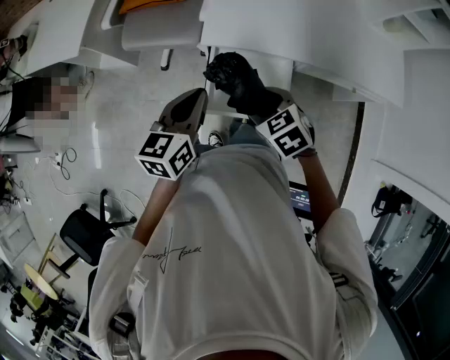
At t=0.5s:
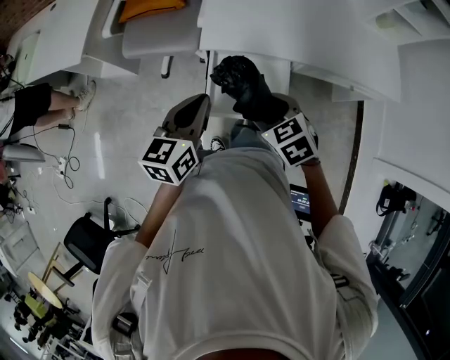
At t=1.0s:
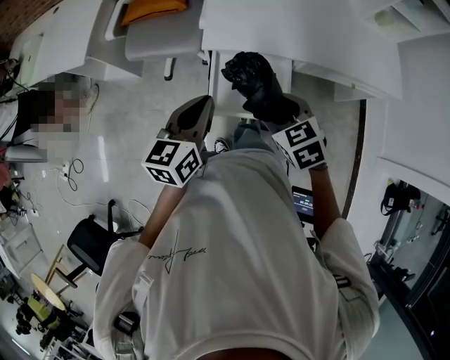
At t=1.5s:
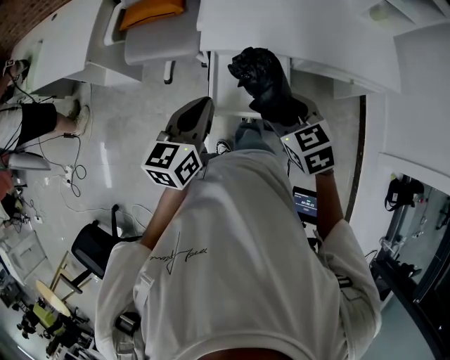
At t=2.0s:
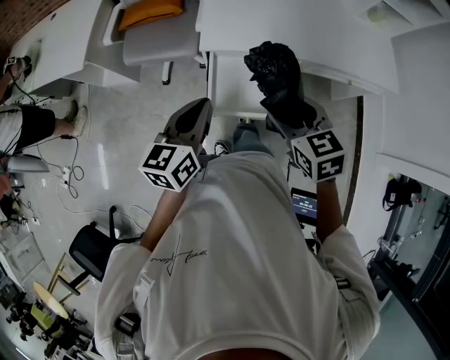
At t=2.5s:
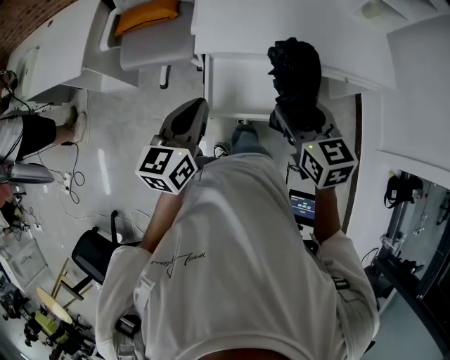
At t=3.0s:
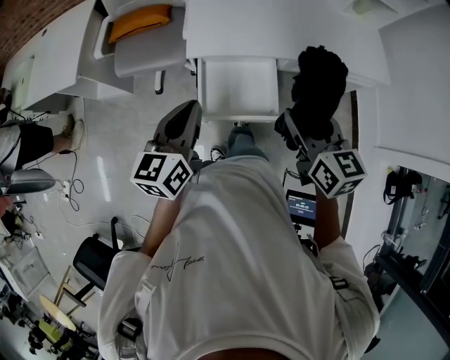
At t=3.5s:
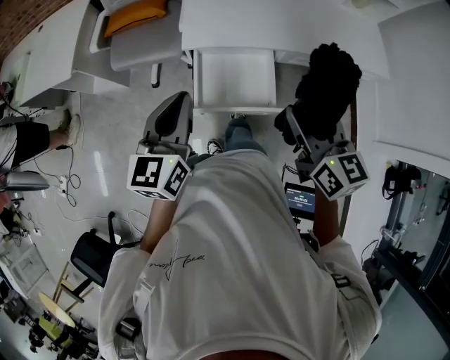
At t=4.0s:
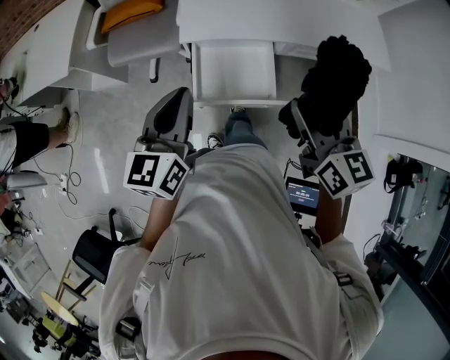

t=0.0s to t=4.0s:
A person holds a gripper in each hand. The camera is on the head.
t=0.0s to t=2.0s: The left gripper moves some 5 cm, while the right gripper goes approximately 10 cm upward, and turns by approximately 20 degrees.
t=2.0s to t=4.0s: The right gripper is displaced to the right and upward by approximately 10 cm, and swivels some 30 degrees.

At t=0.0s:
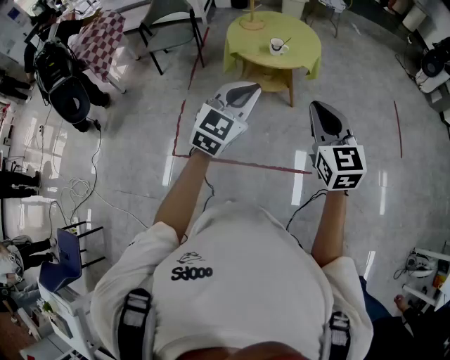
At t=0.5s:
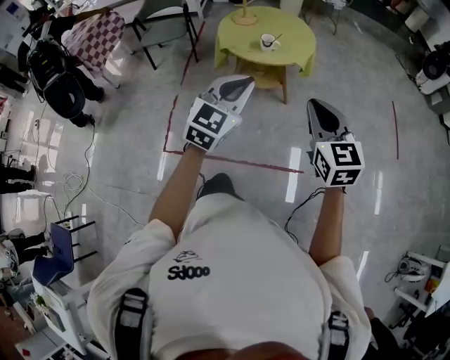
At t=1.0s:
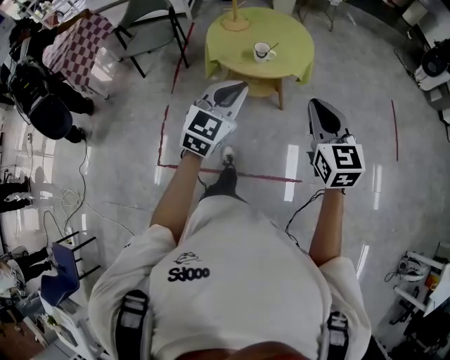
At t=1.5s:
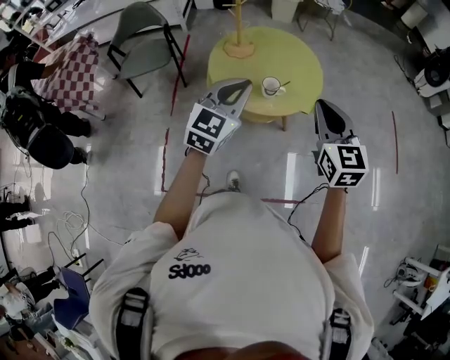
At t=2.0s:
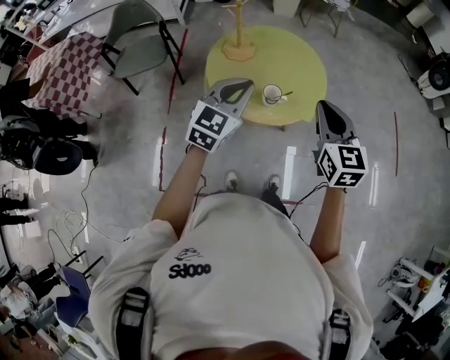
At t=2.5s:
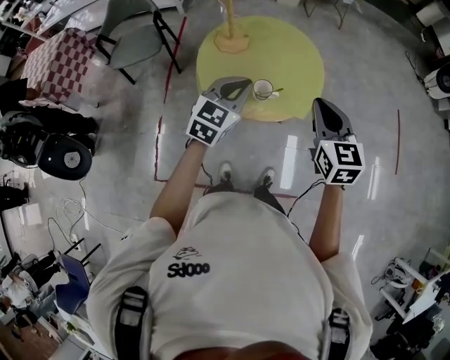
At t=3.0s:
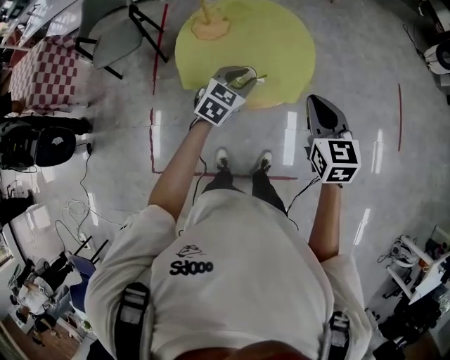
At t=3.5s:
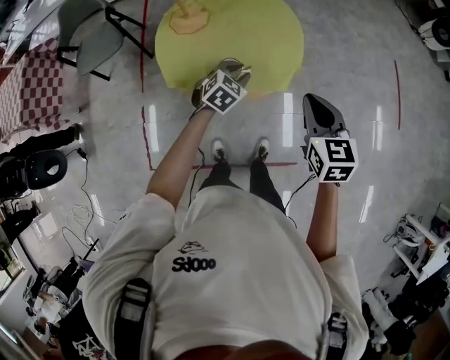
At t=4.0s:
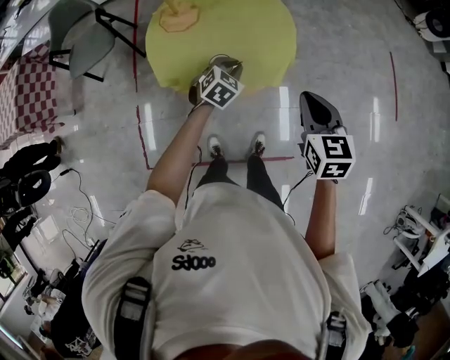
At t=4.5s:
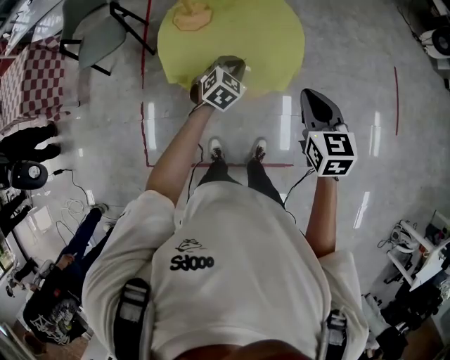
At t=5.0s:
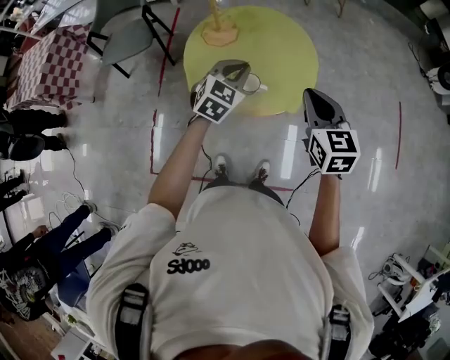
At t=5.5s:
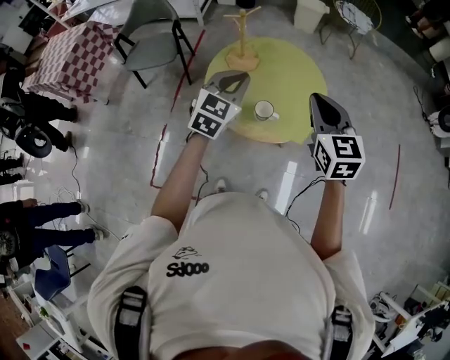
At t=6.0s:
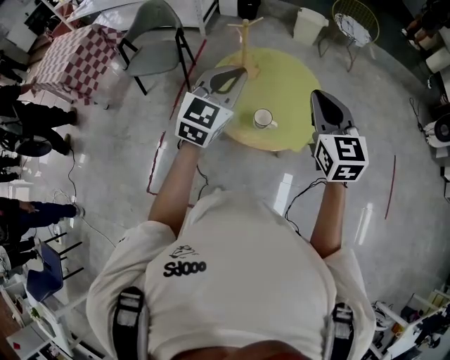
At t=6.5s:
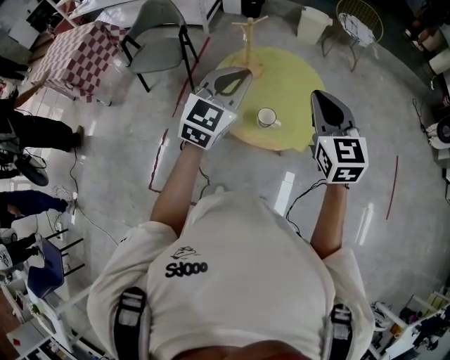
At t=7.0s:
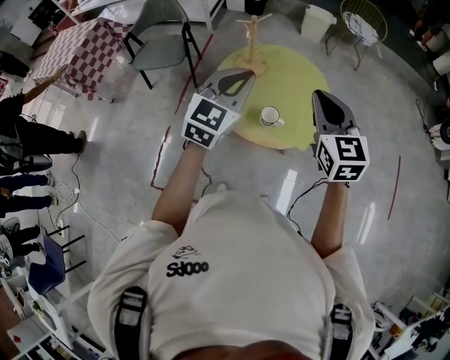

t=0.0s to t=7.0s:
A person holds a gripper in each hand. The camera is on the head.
t=0.0s to t=2.0s: The two grippers travel together, forward, some 40 cm.
t=2.0s to t=3.5s: The left gripper is displaced downward, to the right and forward by roughly 35 cm, angles its fingers downward, by roughly 30 degrees, and opens its fingers. The right gripper moves to the right, downward and forward, roughly 20 cm.
t=3.5s to t=5.0s: The left gripper is displaced upward and to the left by approximately 15 cm, and turns by roughly 20 degrees. The right gripper is displaced to the left by some 5 cm.
t=5.0s to t=7.0s: The two grippers go about 15 cm upward and to the left. The left gripper swivels roughly 20 degrees.

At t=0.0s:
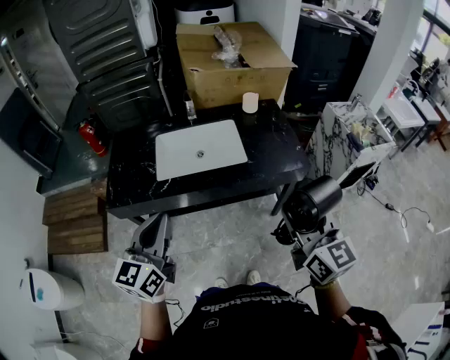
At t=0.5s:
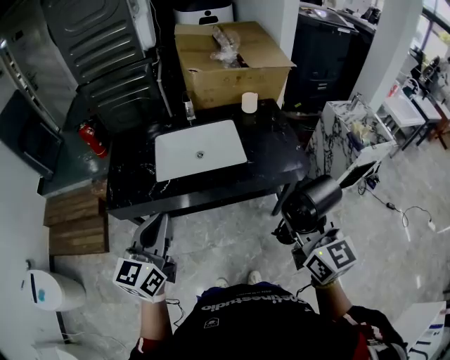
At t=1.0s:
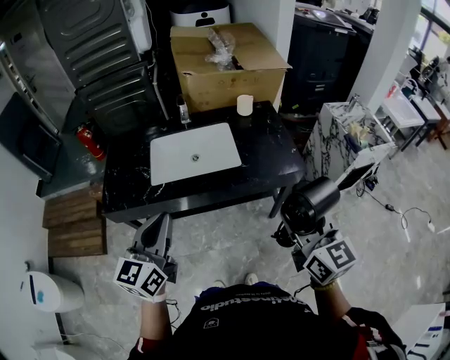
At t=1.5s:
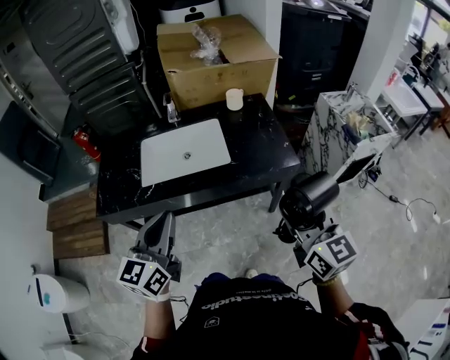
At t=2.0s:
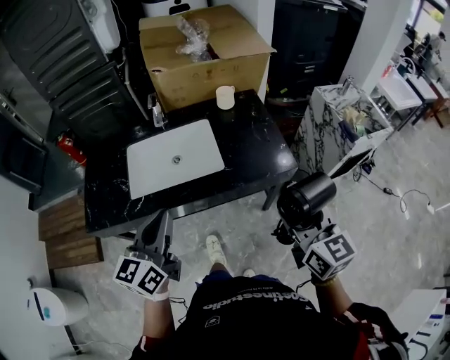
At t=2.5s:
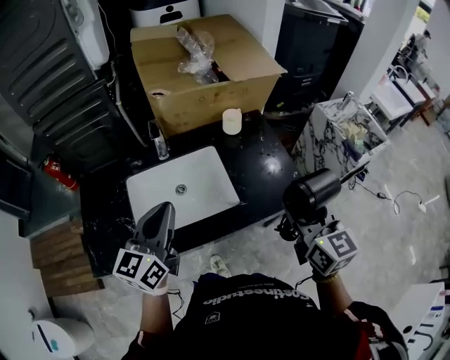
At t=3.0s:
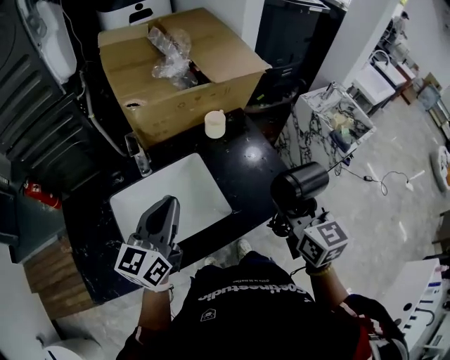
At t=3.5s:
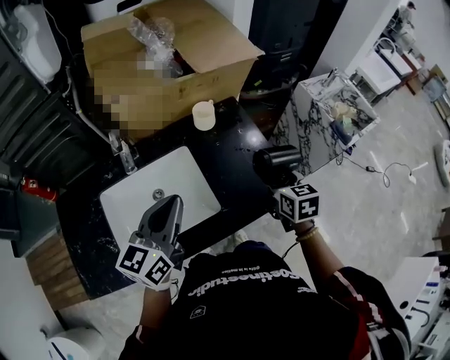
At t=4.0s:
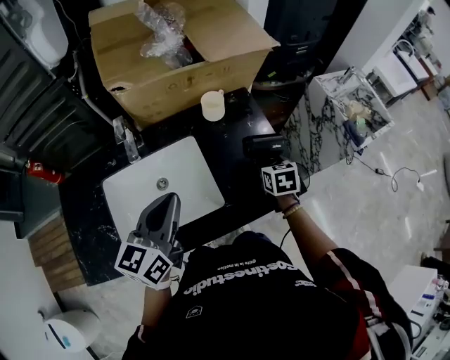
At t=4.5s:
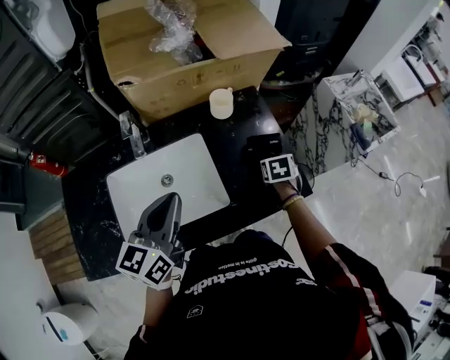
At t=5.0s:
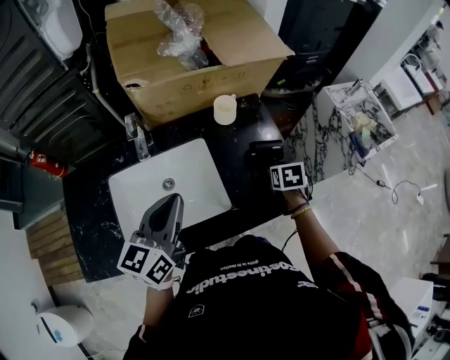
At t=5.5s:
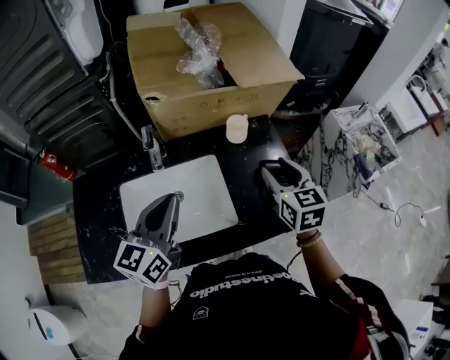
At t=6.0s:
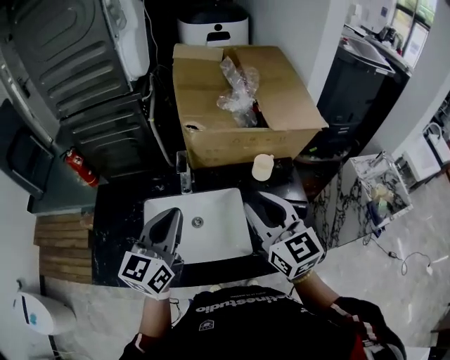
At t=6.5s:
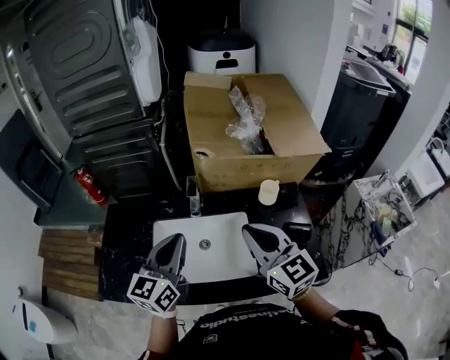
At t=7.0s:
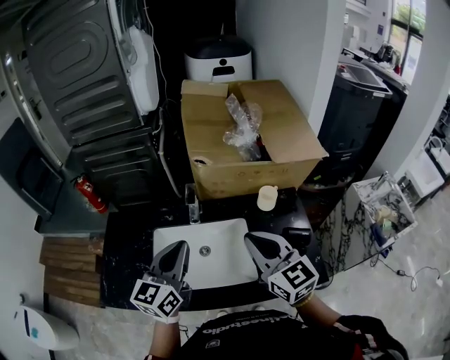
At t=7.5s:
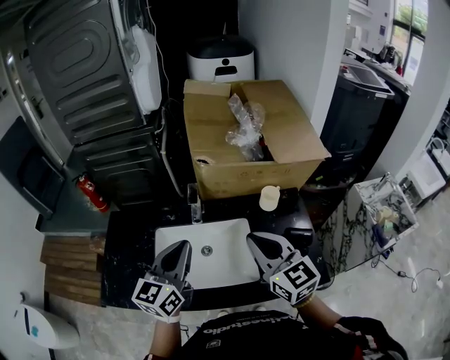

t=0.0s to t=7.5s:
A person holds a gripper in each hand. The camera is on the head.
t=0.0s to t=2.0s: The right gripper heads forward, to the right and downward, covering roughly 15 cm. The left gripper is displaced forward and to the right by approximately 15 cm.
t=2.0s to t=4.0s: The right gripper moves forward and downward, roughly 40 cm, and angles its fingers downward, by roughly 40 degrees. Meanwhile the left gripper shifts approximately 25 cm forward.
t=4.0s to t=5.5s: The right gripper goes about 20 cm upward and to the left, and turns by roughly 30 degrees. Meanwhile the left gripper is displaced to the left by about 5 cm.
t=5.5s to t=7.5s: The left gripper goes approximately 5 cm to the left. The right gripper travels to the left and upward by approximately 20 cm, swivels roughly 30 degrees, and closes.

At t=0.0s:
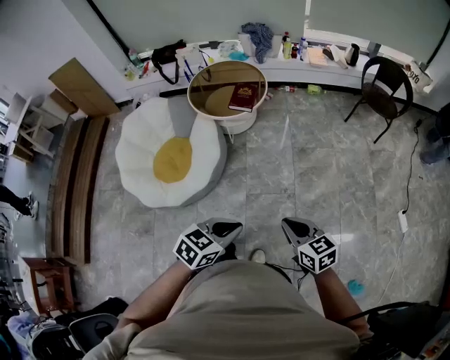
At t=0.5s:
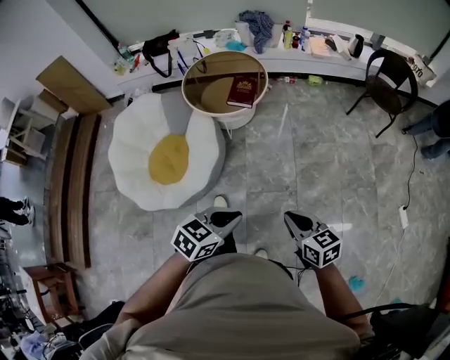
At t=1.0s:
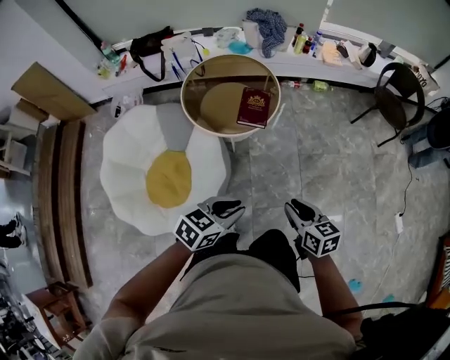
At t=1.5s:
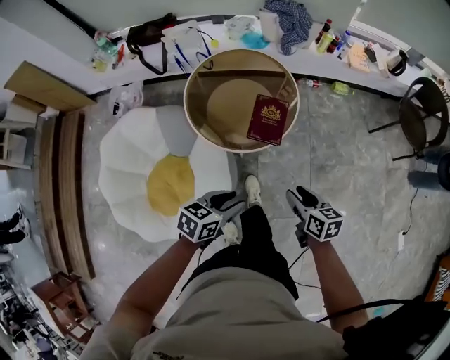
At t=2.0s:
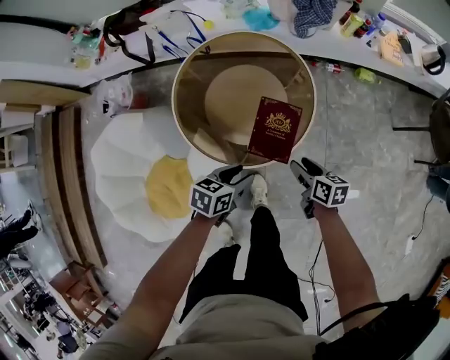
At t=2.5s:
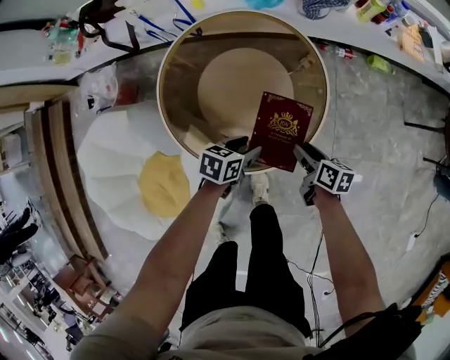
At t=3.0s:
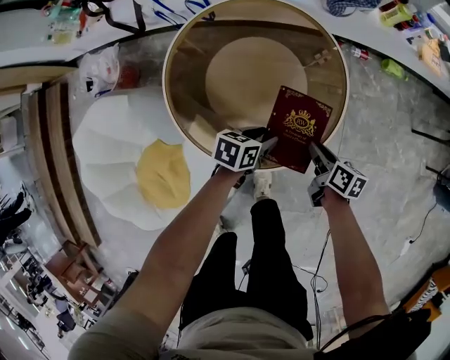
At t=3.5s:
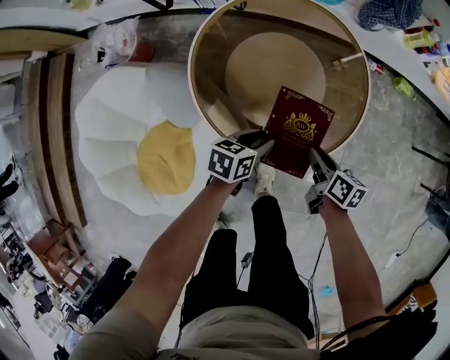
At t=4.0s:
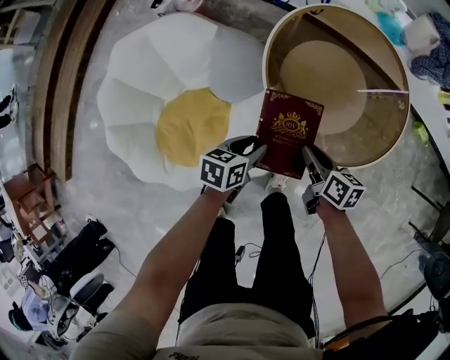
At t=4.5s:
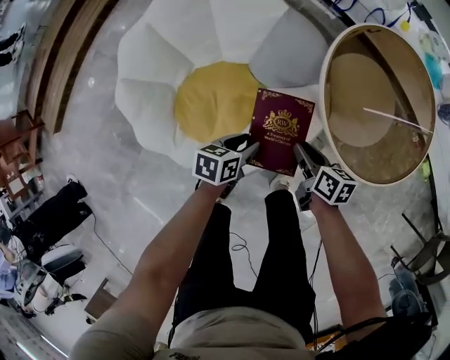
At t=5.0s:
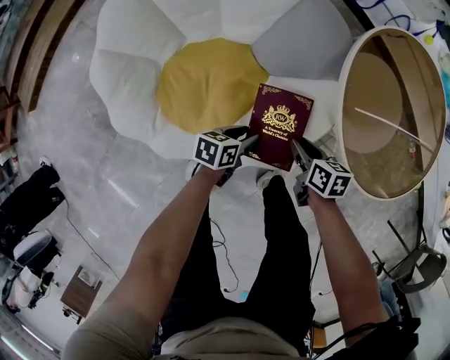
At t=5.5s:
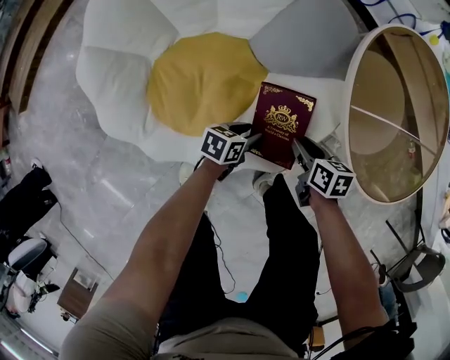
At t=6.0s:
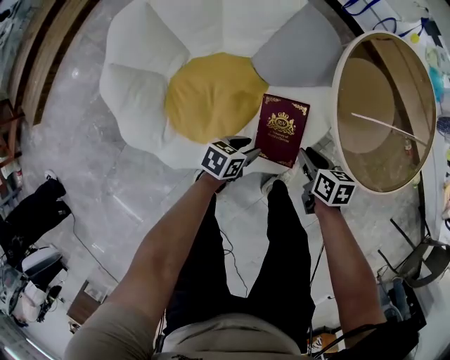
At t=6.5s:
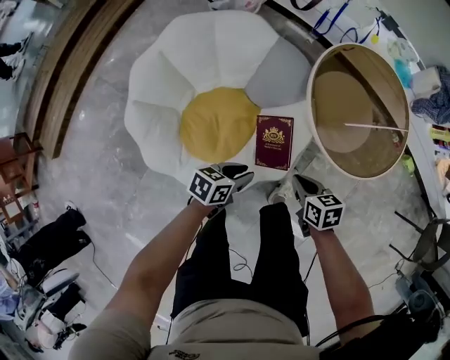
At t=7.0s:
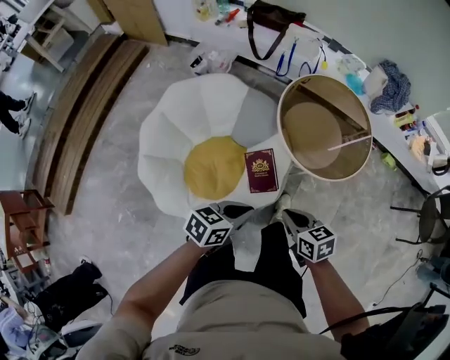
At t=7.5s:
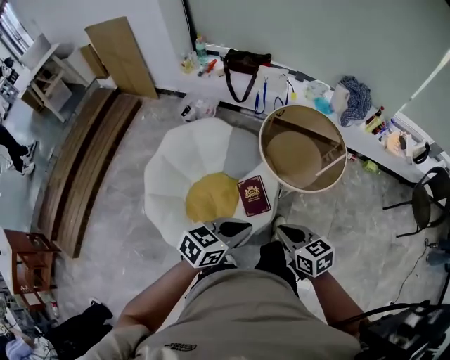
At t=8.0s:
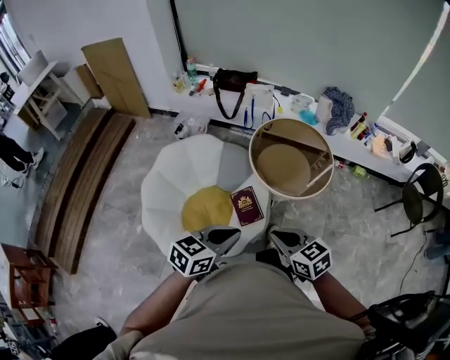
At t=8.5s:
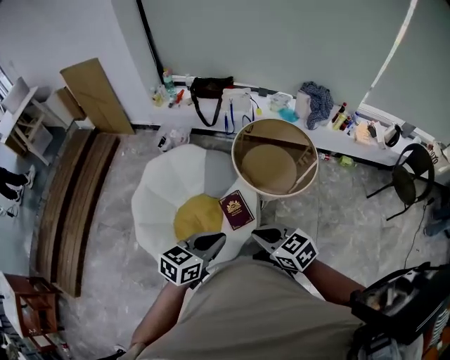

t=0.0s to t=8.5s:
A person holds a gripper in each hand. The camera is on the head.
t=0.0s to t=2.0s: The pair of grippers is taken forward, some 70 cm. The two grippers go approximately 30 cm downward. The left gripper changes its angle by about 30 degrees, and opens; the right gripper rotates about 40 degrees, and opens up.
t=2.0s to t=4.0s: The left gripper moves about 25 cm, and changes its angle by about 30 degrees. Meanwhile the right gripper ends up some 25 cm from where it was, and closes up.
t=4.0s to t=6.5s: The grippers both shift to the left and backward by some 20 cm. The right gripper reaches about 20 cm downward, then returns, turns by roughly 30 degrees, and closes. The left gripper goes downward and returns, about 25 cm each way.
t=6.5s to t=8.5s: The left gripper travels upward by some 40 cm, turns by approximately 40 degrees, and closes its fingers. Meanwhile the right gripper goes approximately 40 cm upward and backward, and rotates about 30 degrees.
